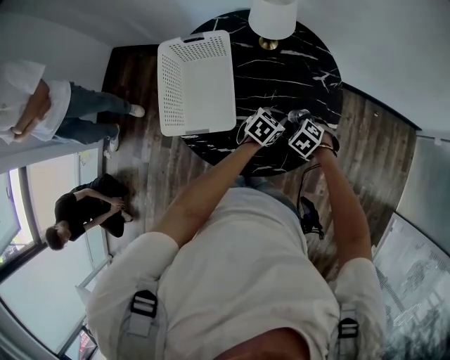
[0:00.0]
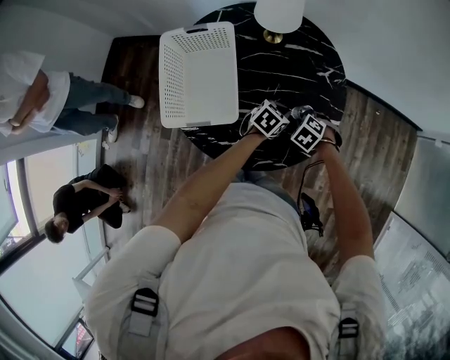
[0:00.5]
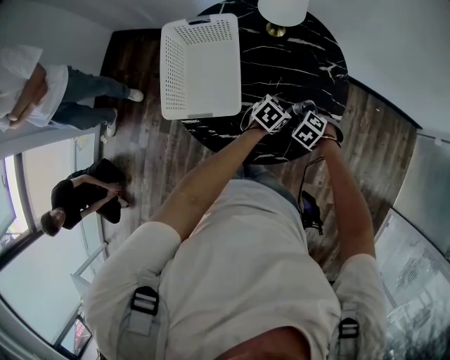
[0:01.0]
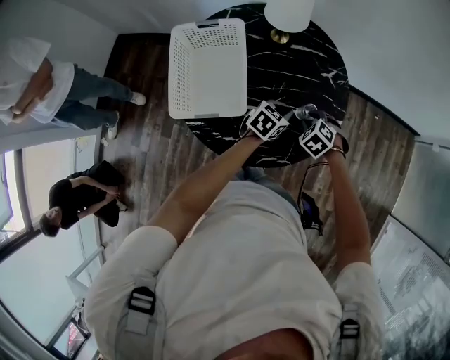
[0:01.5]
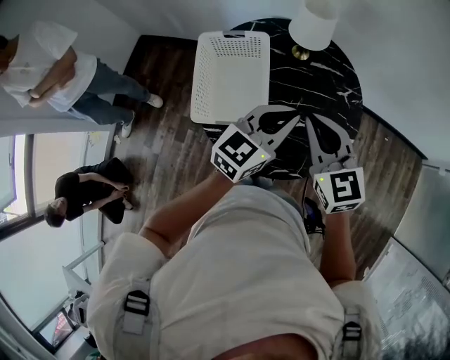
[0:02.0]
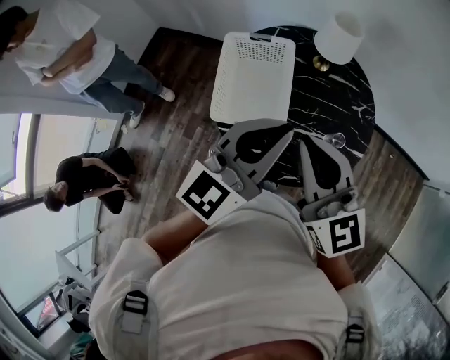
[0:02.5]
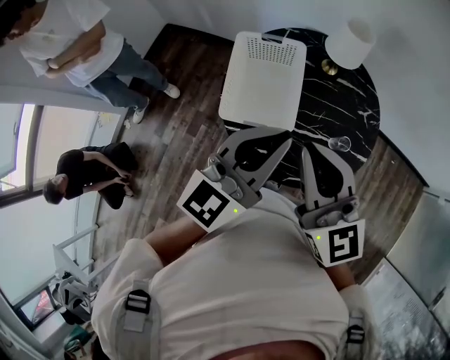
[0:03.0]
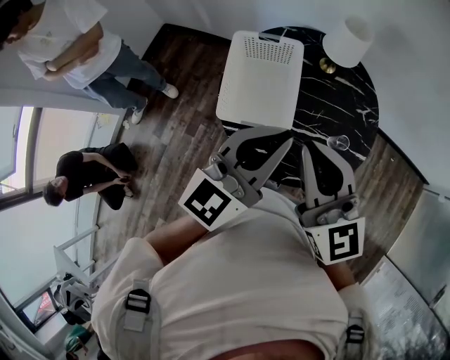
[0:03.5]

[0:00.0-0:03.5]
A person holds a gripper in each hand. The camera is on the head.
0:00.0 to 0:02.0: Both grippers travel together upward, about 30 cm. The right gripper angles its fingers upward, by some 60 degrees; the left gripper tips its fingers upward by approximately 40 degrees.
0:02.0 to 0:03.5: Both grippers travel together upward, to the left and backward, roughly 15 cm.

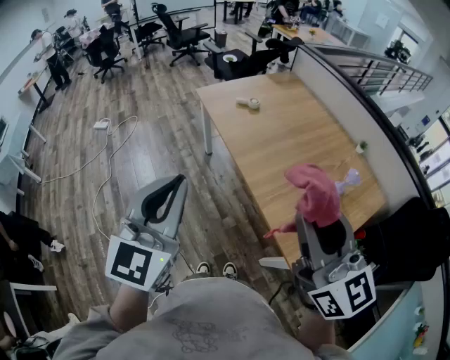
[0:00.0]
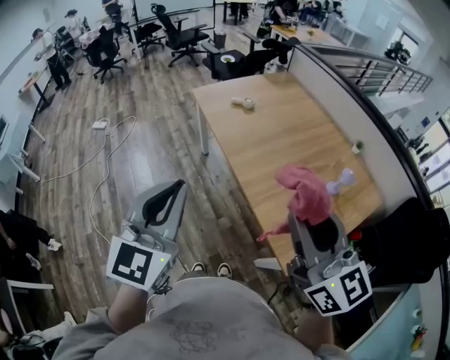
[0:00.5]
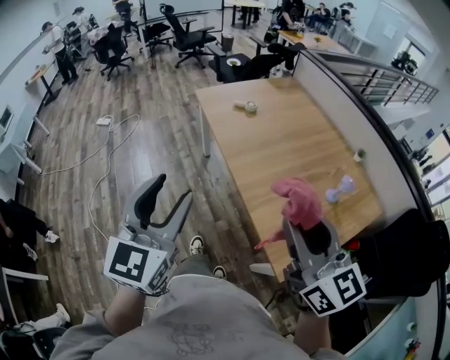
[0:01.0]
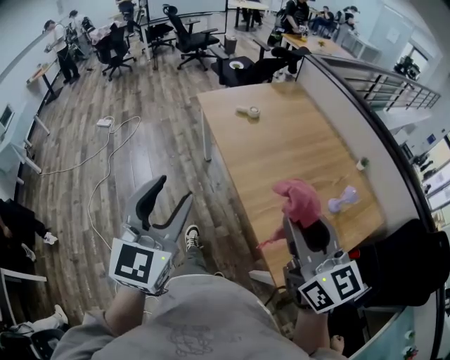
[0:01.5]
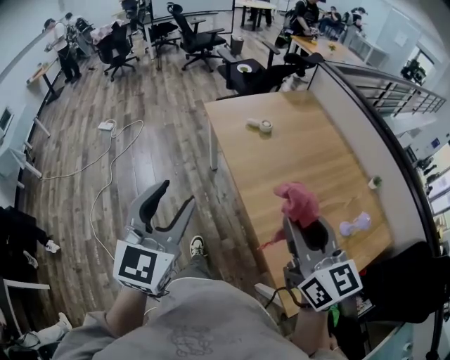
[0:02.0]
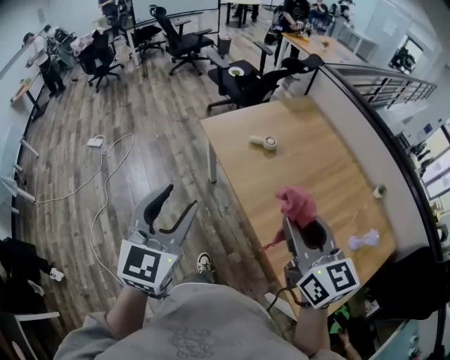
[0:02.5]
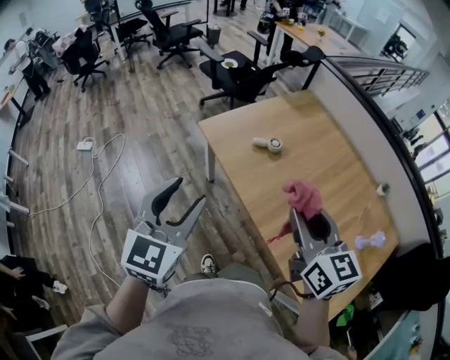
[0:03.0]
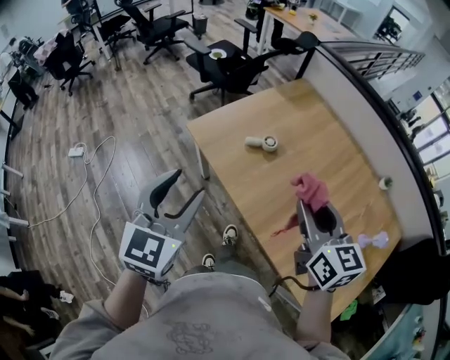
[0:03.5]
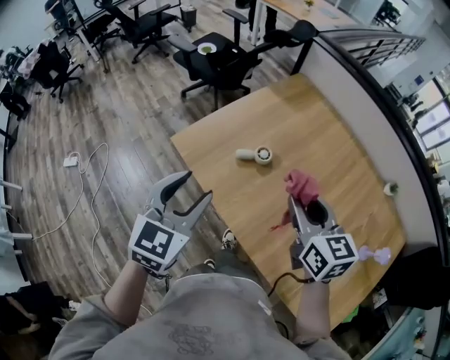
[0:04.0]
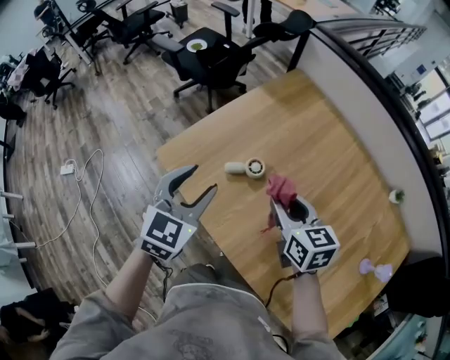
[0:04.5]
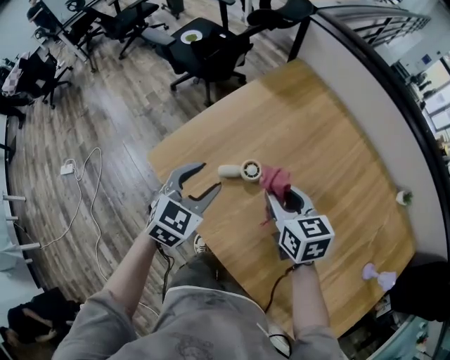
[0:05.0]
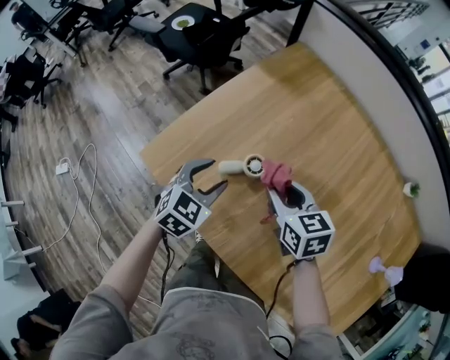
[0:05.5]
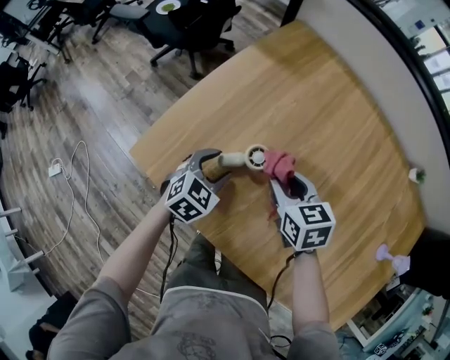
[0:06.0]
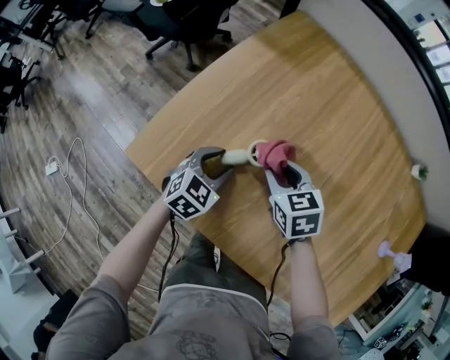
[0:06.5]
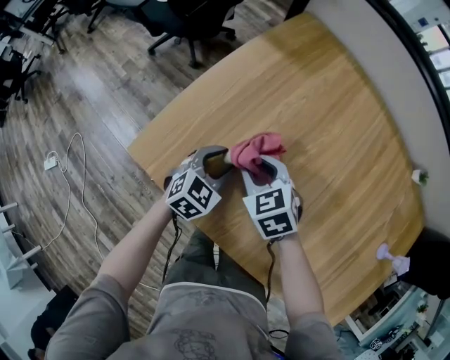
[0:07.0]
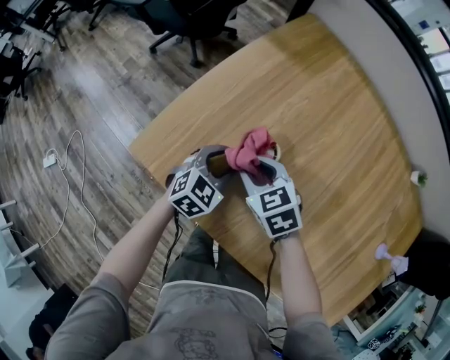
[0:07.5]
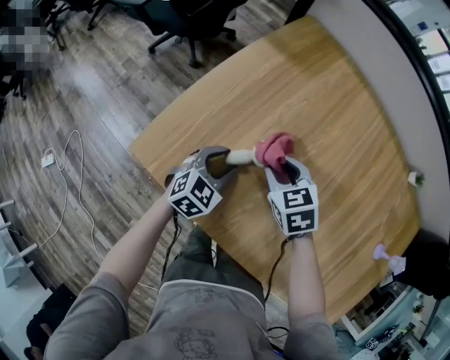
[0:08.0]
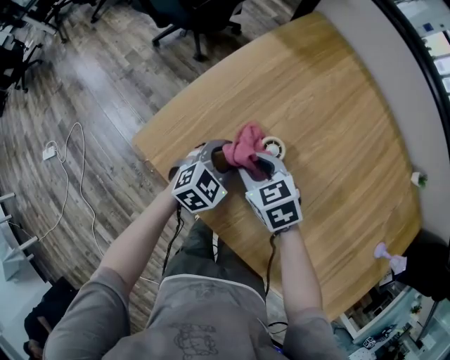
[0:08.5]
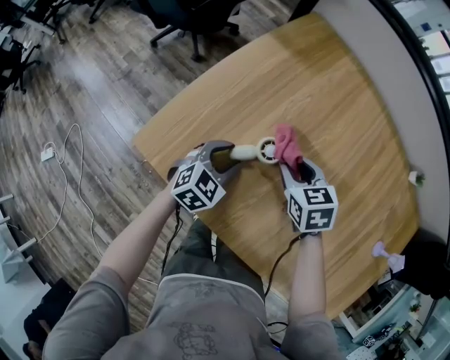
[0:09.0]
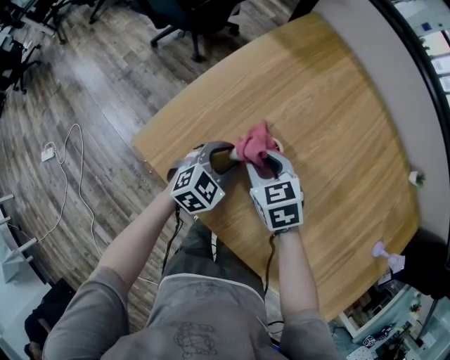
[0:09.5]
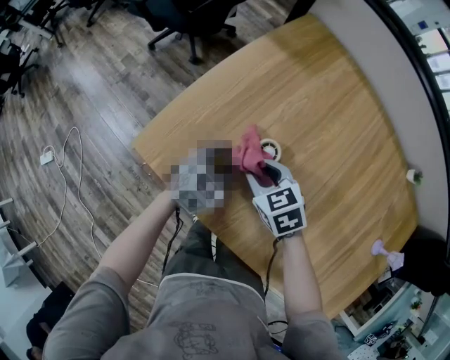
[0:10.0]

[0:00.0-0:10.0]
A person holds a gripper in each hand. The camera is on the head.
0:00.0 to 0:02.0: The left gripper is displaced forward by some 15 cm, and opens up. The right gripper shifts some 20 cm forward and downward.
0:02.0 to 0:04.0: The pair of grippers is taken forward, roughly 40 cm. The left gripper changes its angle by some 30 degrees. The right gripper turns by about 30 degrees.
0:04.0 to 0:06.0: The two grippers go some 35 cm downward and forward. The left gripper swivels some 30 degrees; the right gripper rotates roughly 20 degrees.
0:08.0 to 0:10.0: The right gripper swings left and right, some 10 cm each way, with 2 reversals.

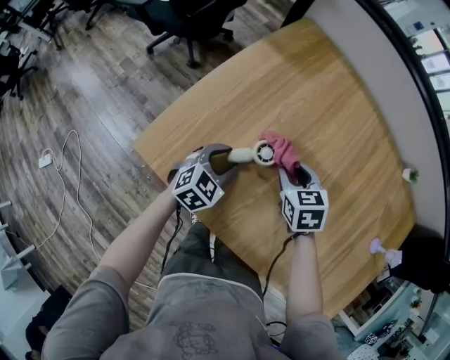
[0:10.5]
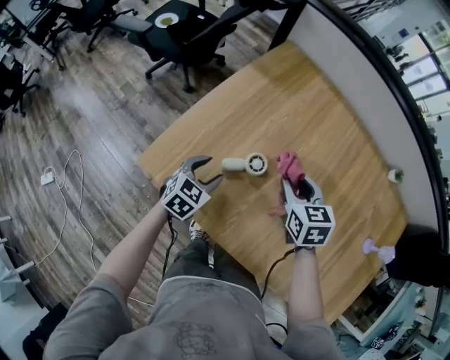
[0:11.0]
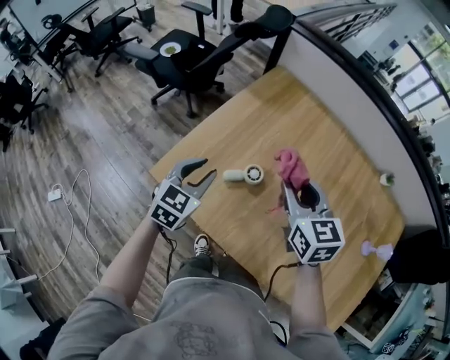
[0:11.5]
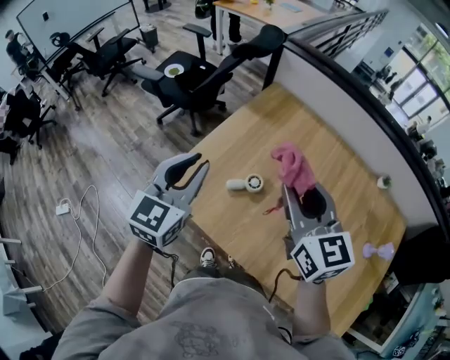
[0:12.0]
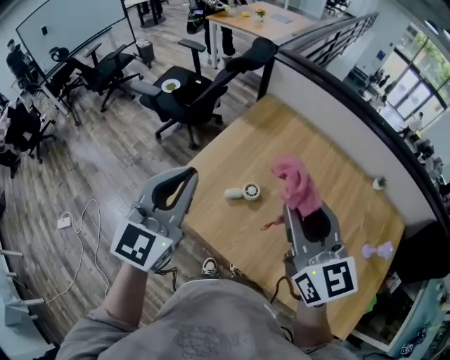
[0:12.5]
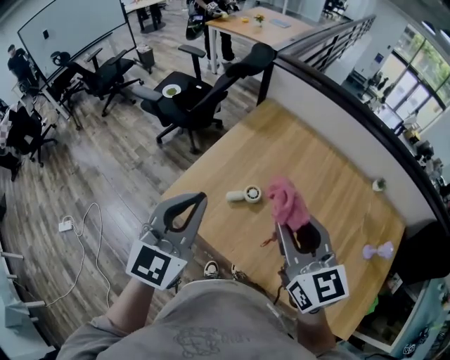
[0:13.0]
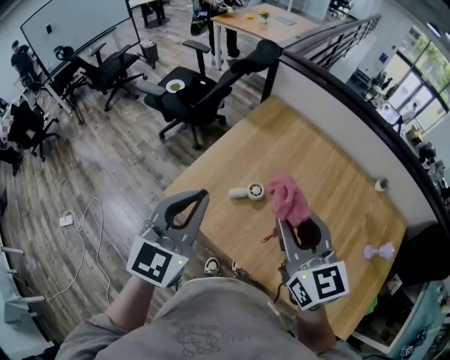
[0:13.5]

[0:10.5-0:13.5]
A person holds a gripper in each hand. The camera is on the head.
0:10.5 to 0:12.0: Both grippers travel together upward, roughly 35 cm. The left gripper points its fingers roughly 30 degrees further upward, and closes up. Meanwhile the right gripper angles its fingers upward, by about 40 degrees.
0:12.0 to 0:13.5: The right gripper shifts about 5 cm backward, while the left gripper travels backward and upward by roughly 10 cm.

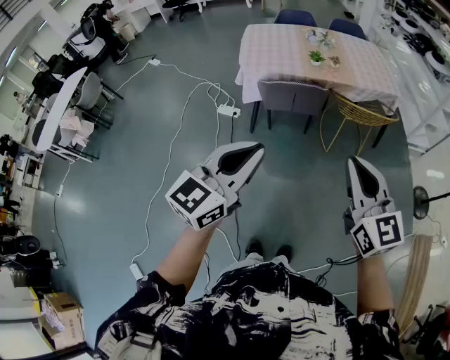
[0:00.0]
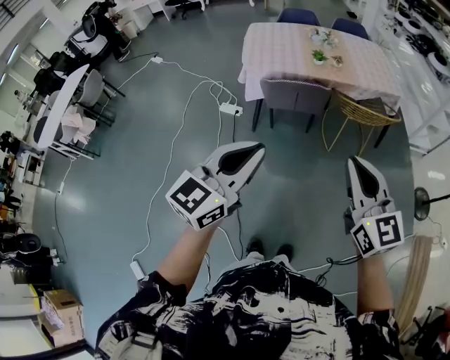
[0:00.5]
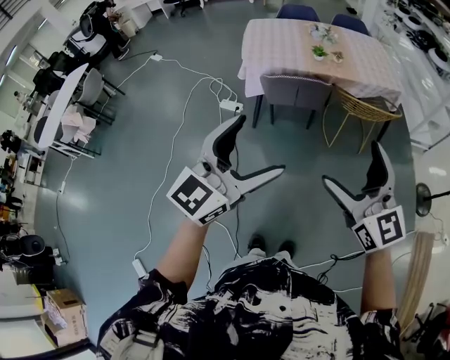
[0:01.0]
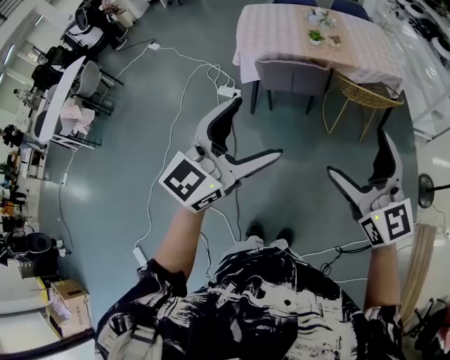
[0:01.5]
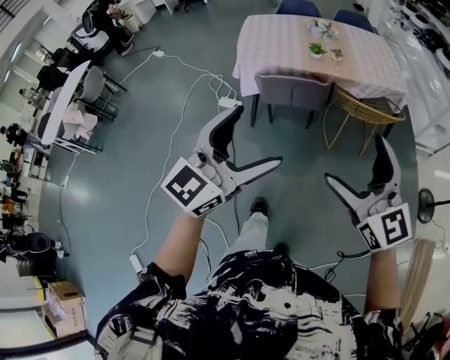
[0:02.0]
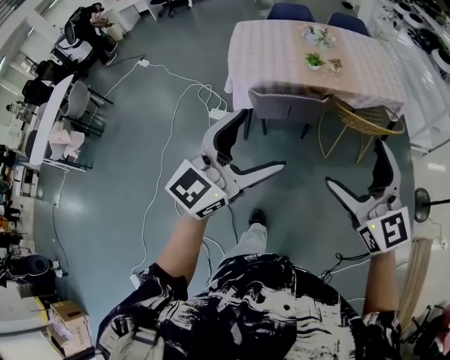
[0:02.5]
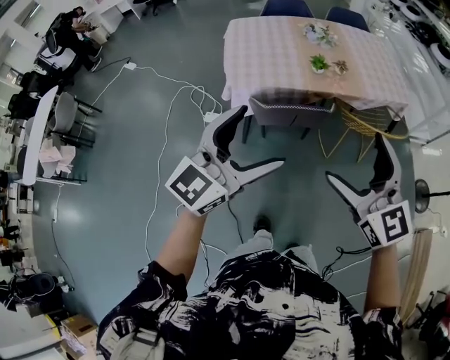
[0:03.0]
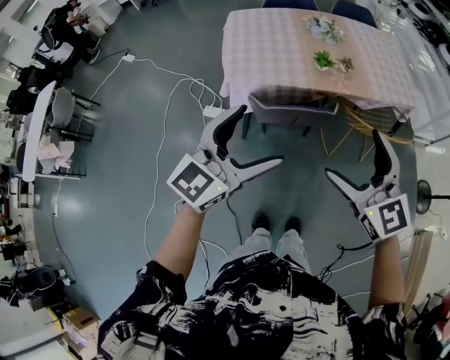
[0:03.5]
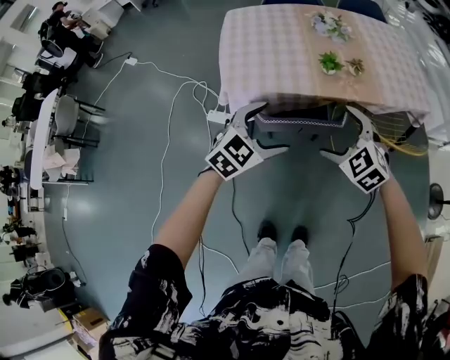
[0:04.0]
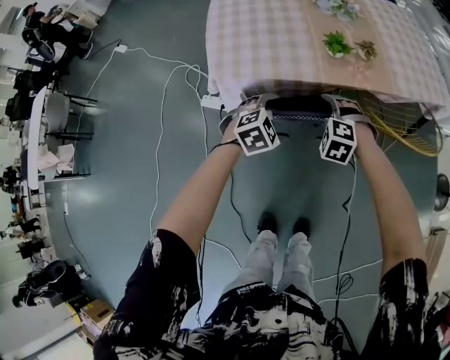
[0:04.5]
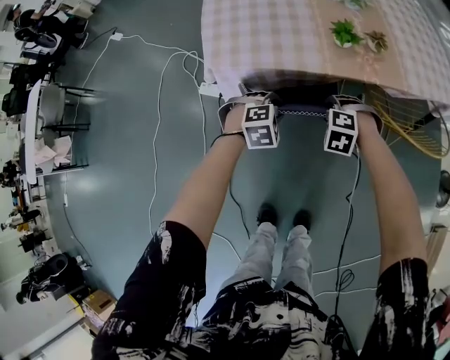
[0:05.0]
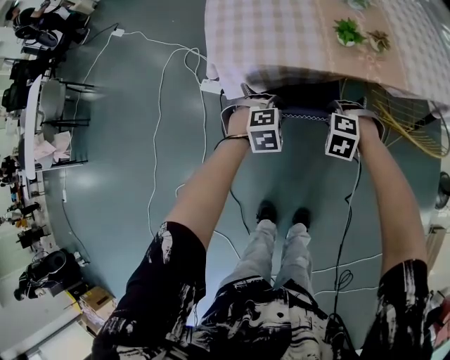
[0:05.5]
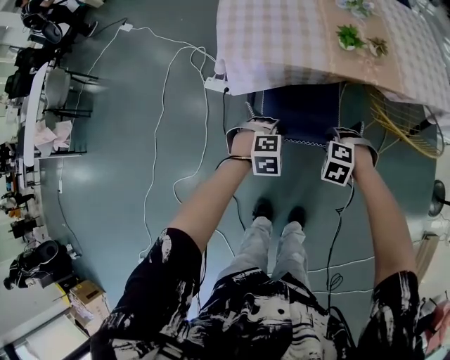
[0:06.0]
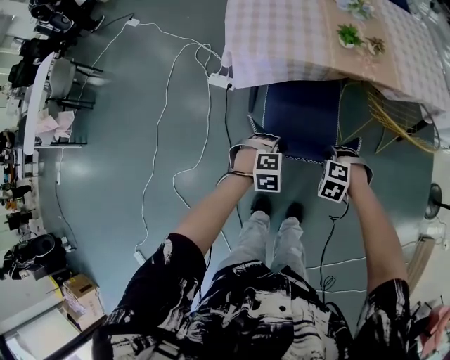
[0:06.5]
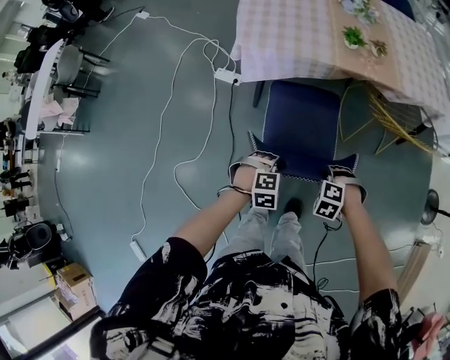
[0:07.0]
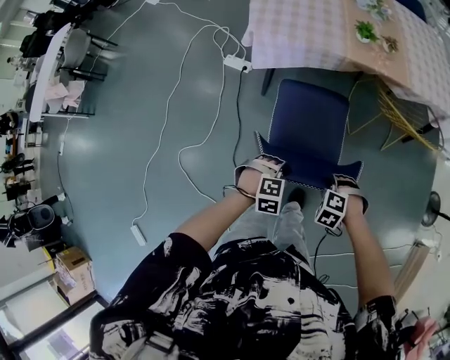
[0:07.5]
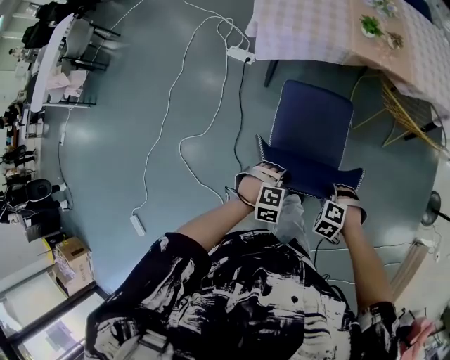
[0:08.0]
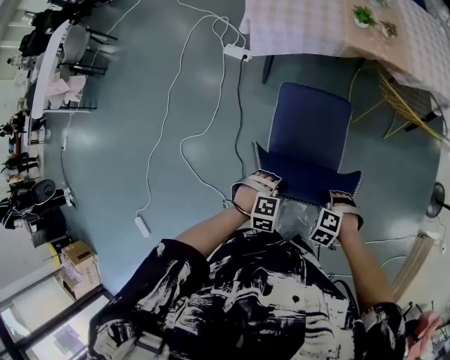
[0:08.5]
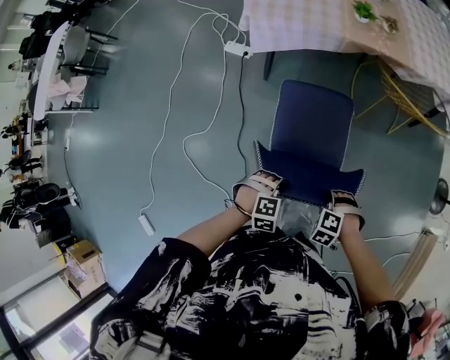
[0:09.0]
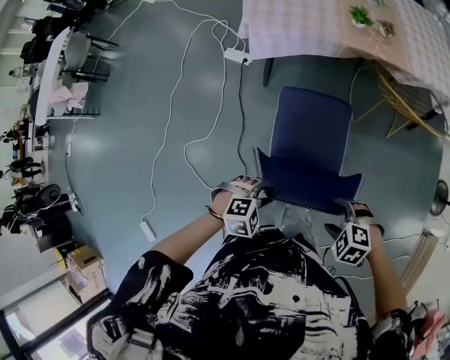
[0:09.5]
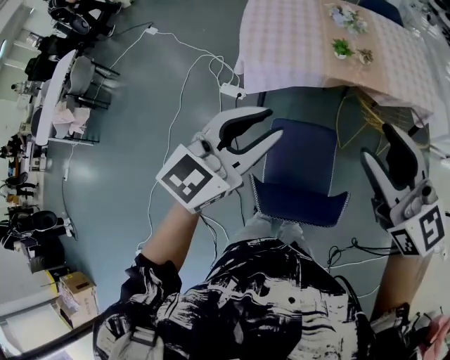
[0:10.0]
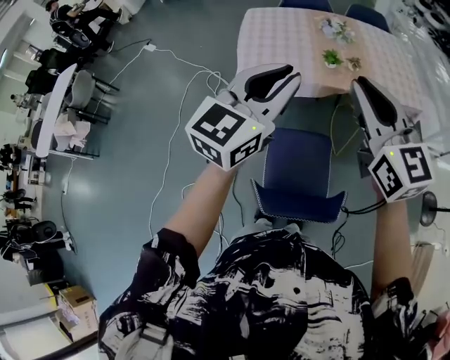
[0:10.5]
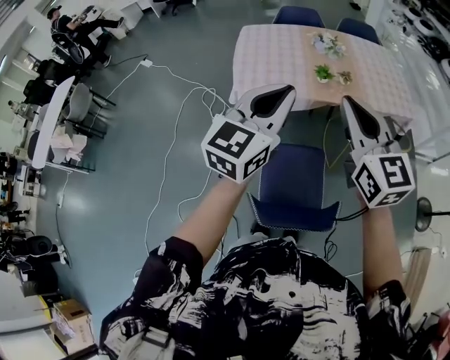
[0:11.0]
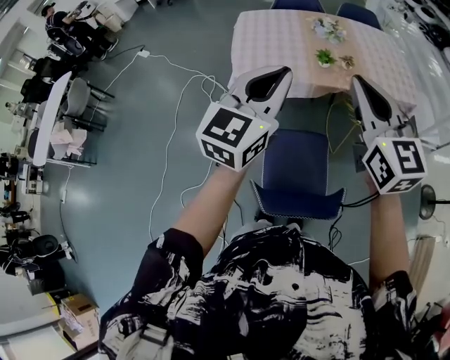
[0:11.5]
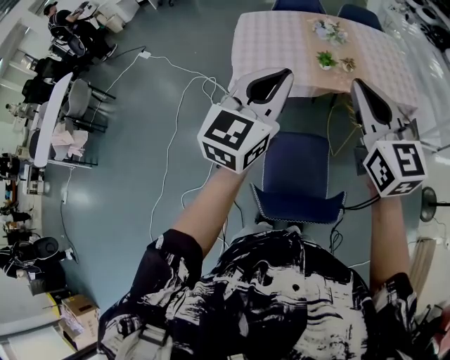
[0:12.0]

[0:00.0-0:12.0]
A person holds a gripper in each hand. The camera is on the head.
0:00.0 to 0:02.0: The right gripper moves forward, some 5 cm, and opens up; the left gripper goes about 10 cm to the right and forward, and opens up.
0:02.0 to 0:04.0: The two grippers travel together, forward, about 50 cm. The two grippers go some 25 cm downward. The right gripper angles its fingers downward, by about 40 degrees, while the left gripper tilts its fingers some 30 degrees downward.
0:04.0 to 0:06.0: The grippers both shift downward by about 25 cm. The right gripper tips its fingers downward by approximately 40 degrees, and closes up. Meanwhile the left gripper angles its fingers downward, by approximately 40 degrees, and closes up.
0:06.0 to 0:08.0: The right gripper ends up about 30 cm from where it was. The left gripper shifts by some 30 cm.
0:08.0 to 0:10.0: Both grippers travel together upward, about 50 cm. The right gripper tips its fingers upward by roughly 80 degrees; the left gripper angles its fingers upward, by some 60 degrees.
0:10.0 to 0:12.0: The left gripper goes roughly 10 cm upward and forward. Meanwhile the right gripper moves forward, roughly 5 cm, turns by about 20 degrees, and closes its fingers.
